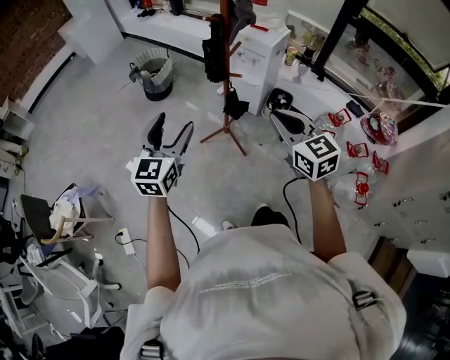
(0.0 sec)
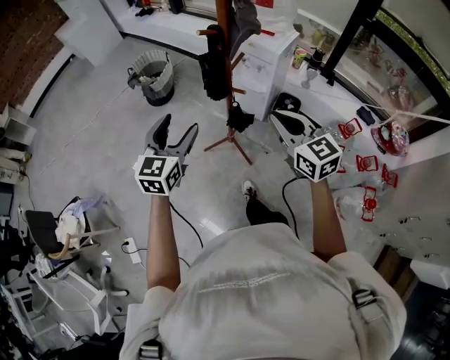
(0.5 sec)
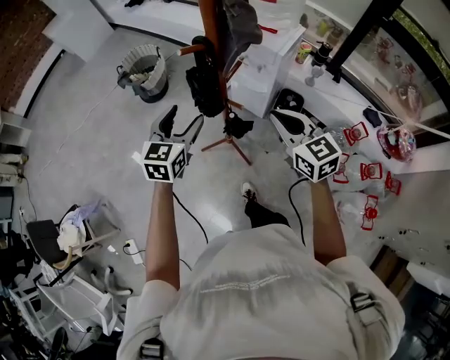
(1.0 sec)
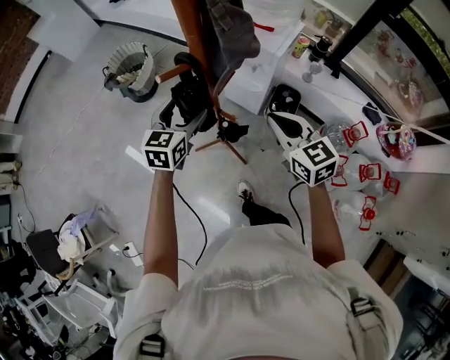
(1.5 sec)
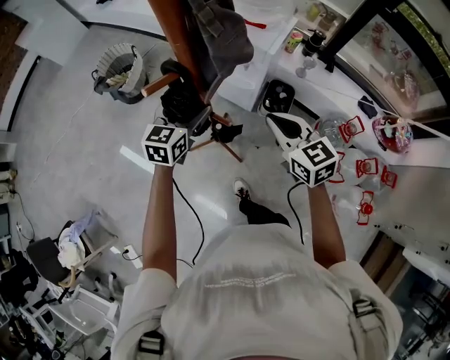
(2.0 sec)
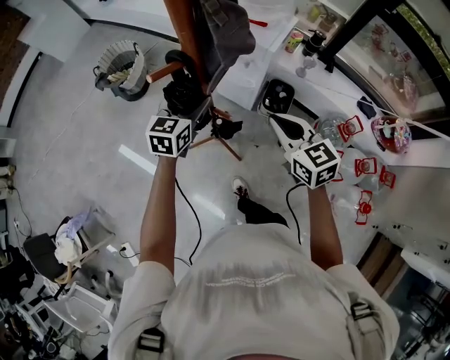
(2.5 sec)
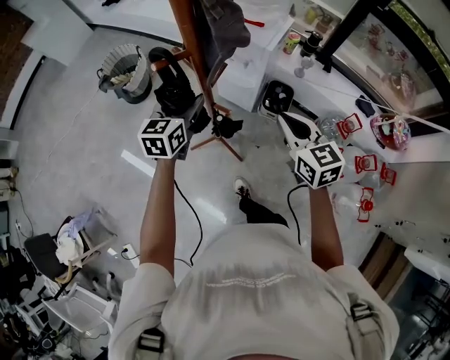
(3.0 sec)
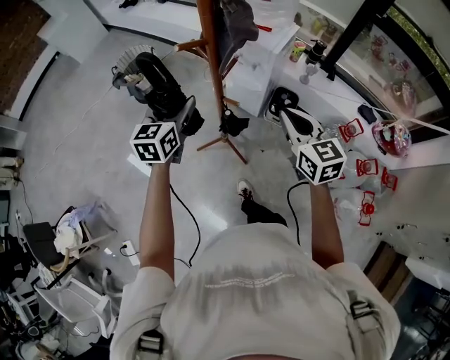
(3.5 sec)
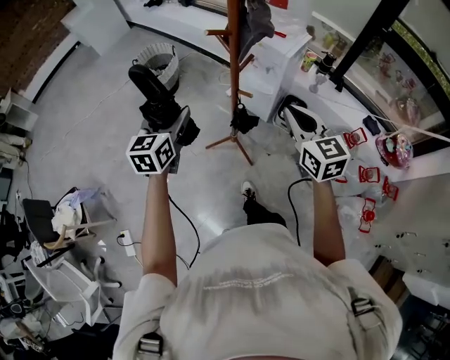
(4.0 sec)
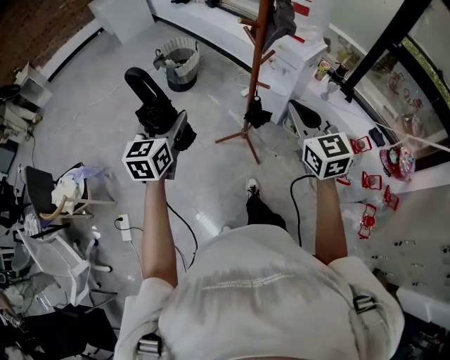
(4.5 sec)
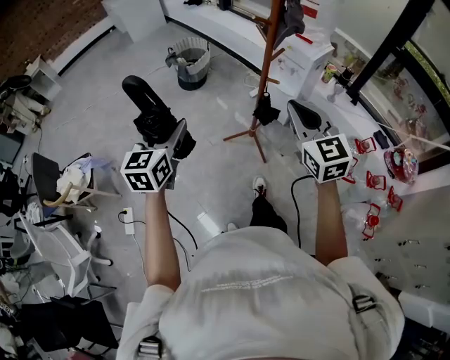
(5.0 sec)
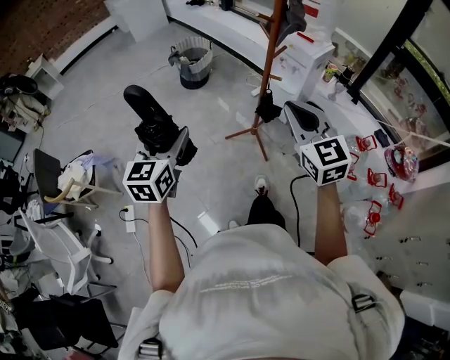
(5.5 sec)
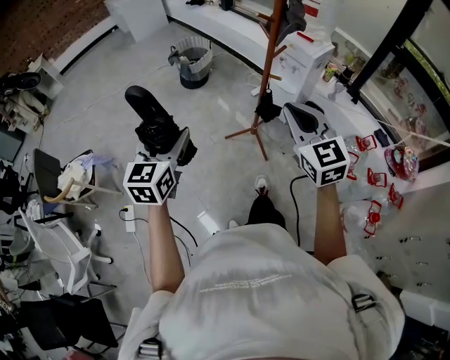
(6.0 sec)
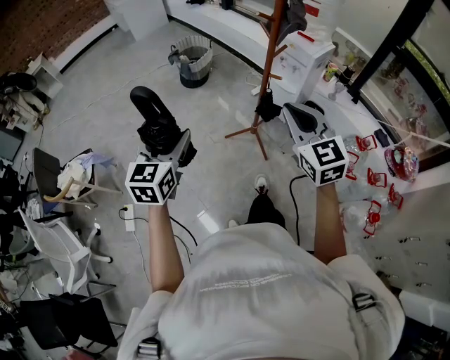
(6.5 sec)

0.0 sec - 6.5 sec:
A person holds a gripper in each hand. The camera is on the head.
0.0 sec - 2.0 sec: Both grippers travel together forward and downward, roughly 35 cm. The left gripper rotates about 20 degrees.
2.0 sec - 4.5 sec: The left gripper is displaced backward, to the left and upward by roughly 40 cm, and turns by some 30 degrees, while the right gripper heads backward and upward, covering roughly 25 cm.
4.5 sec - 6.5 sec: The right gripper moves backward and to the left, approximately 10 cm; the left gripper is displaced backward by about 15 cm.

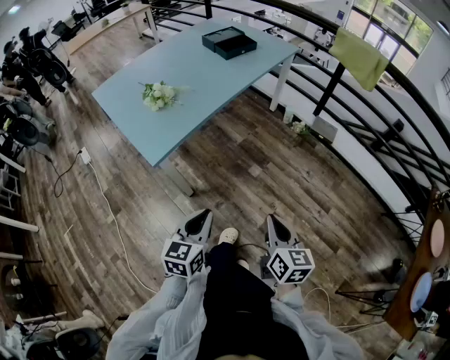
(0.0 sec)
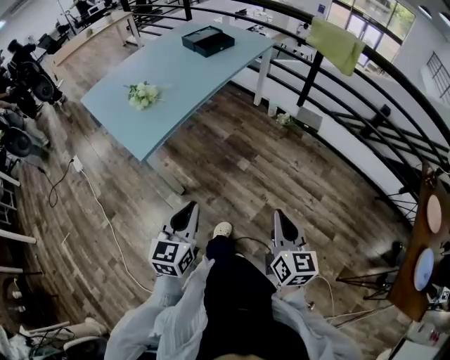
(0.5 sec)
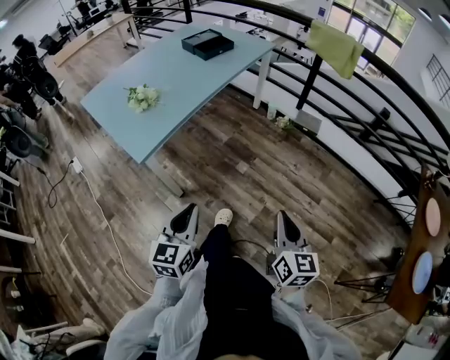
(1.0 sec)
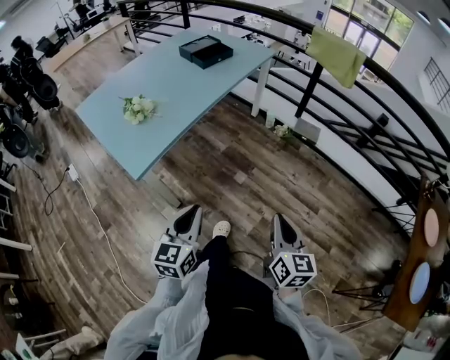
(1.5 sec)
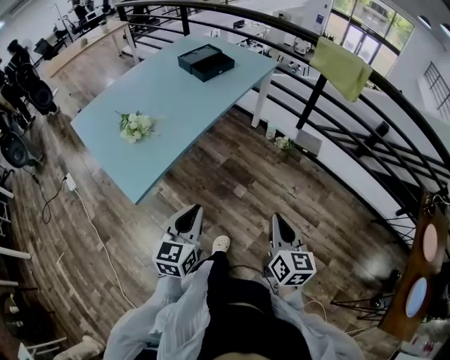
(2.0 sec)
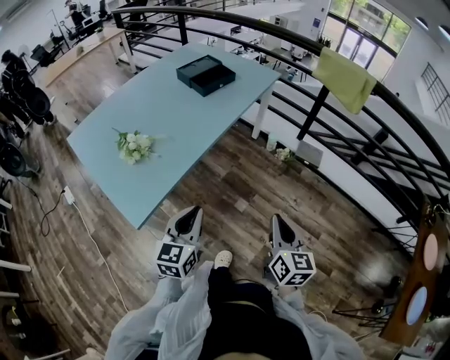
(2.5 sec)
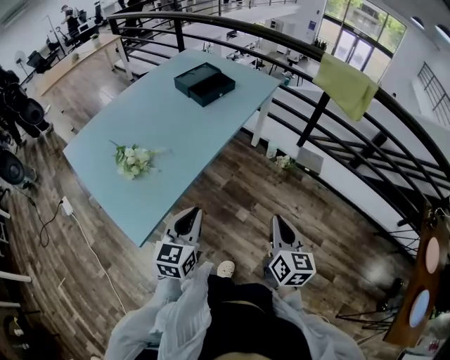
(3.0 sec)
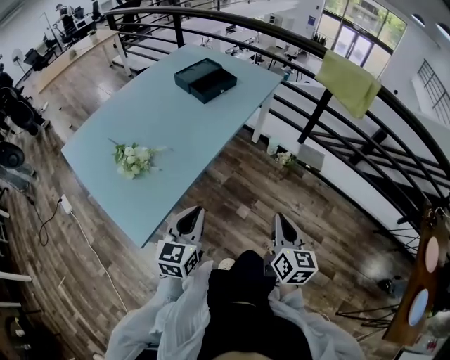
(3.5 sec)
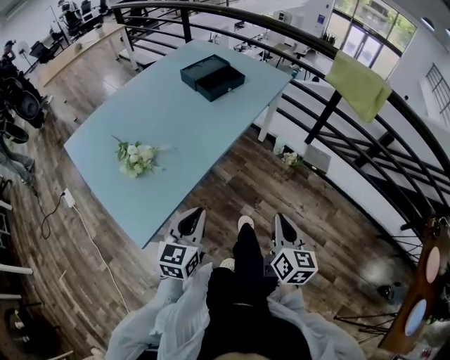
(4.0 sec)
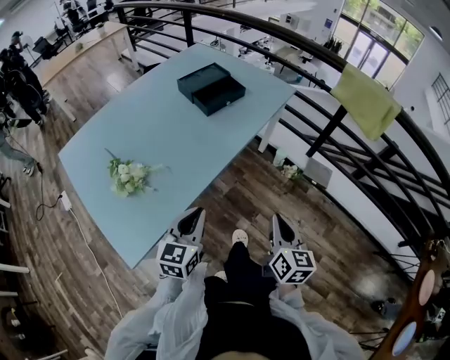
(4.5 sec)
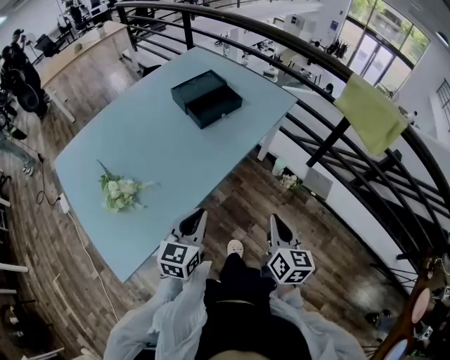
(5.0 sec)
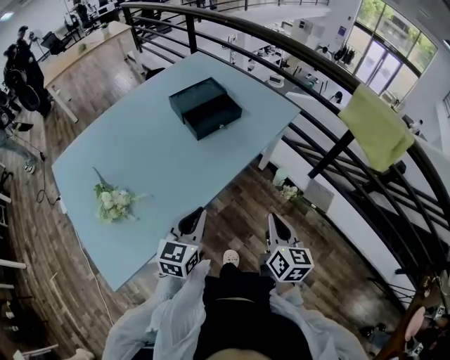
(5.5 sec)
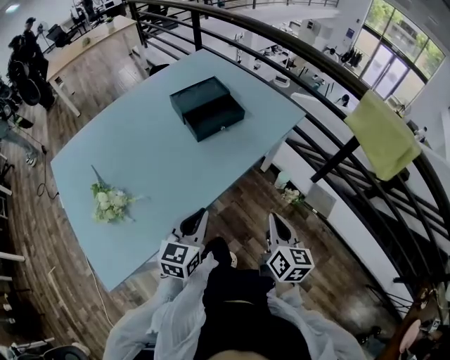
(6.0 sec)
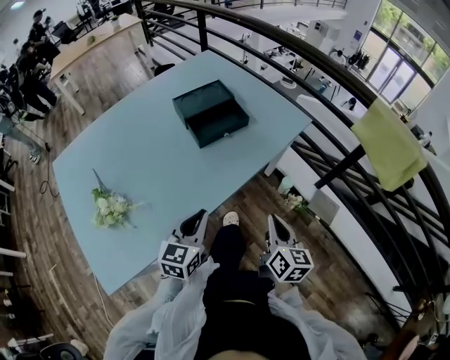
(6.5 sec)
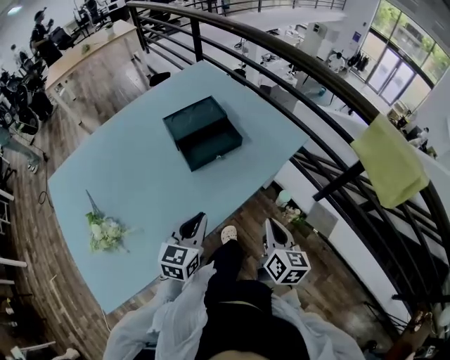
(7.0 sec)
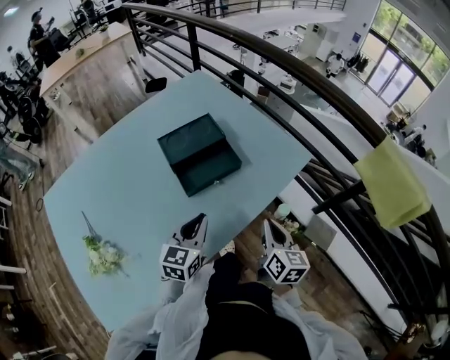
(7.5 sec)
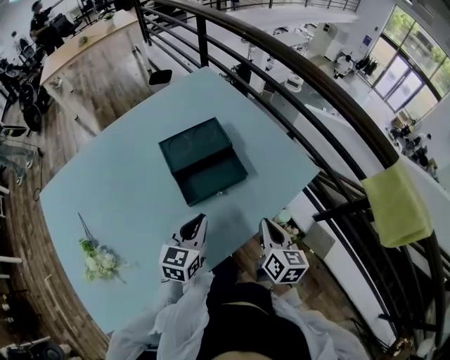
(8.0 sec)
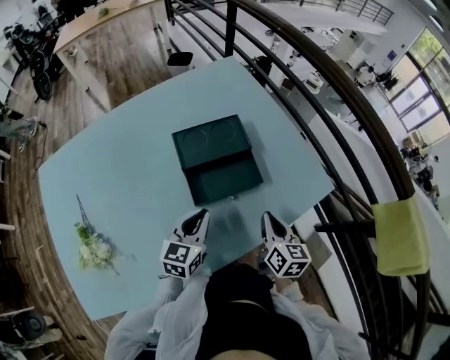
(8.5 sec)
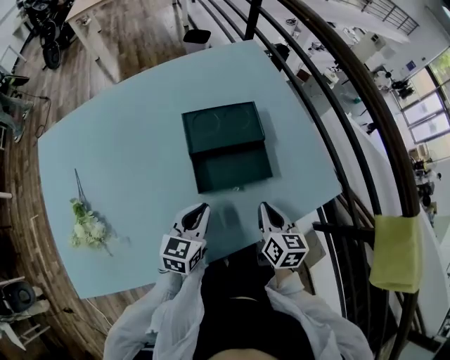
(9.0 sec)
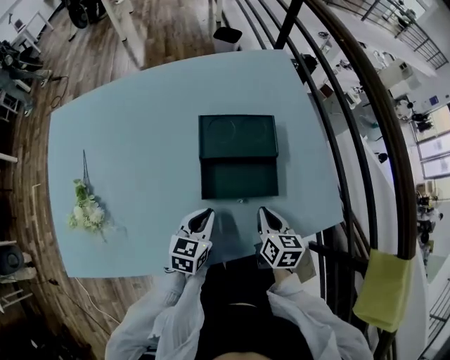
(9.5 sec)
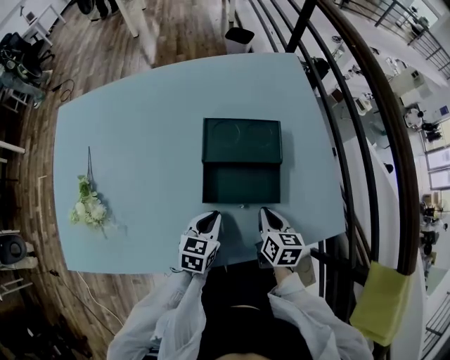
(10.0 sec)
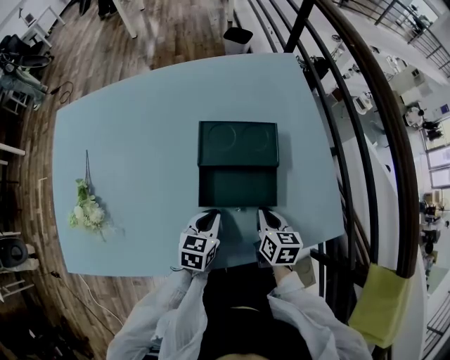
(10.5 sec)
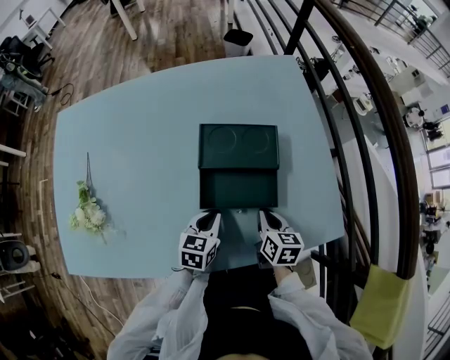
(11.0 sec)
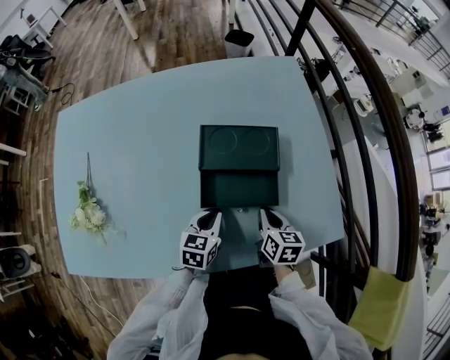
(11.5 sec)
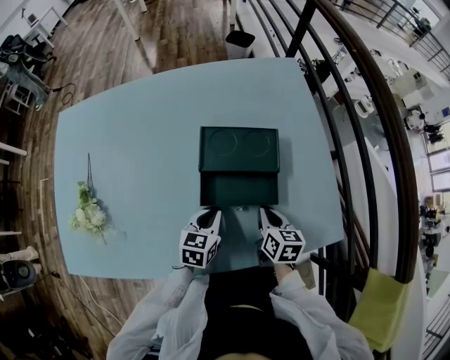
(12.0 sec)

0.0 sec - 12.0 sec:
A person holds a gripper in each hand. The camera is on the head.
0.0 sec - 2.0 sec: The right gripper moves forward and to the right, roughly 10 cm, while the left gripper heads forward, covering about 10 cm.
2.0 sec - 4.0 sec: The left gripper moves forward and to the left, some 15 cm; the right gripper moves forward, some 15 cm.
4.0 sec - 6.0 sec: The grippers both shift forward by some 25 cm.
6.0 sec - 8.0 sec: Both grippers travel together forward, some 25 cm.
8.0 sec - 10.0 sec: The right gripper moves approximately 15 cm, and swivels approximately 40 degrees. The left gripper goes approximately 10 cm downward, and turns by roughly 30 degrees.
10.0 sec - 12.0 sec: There are only small adjustments of the grippers.

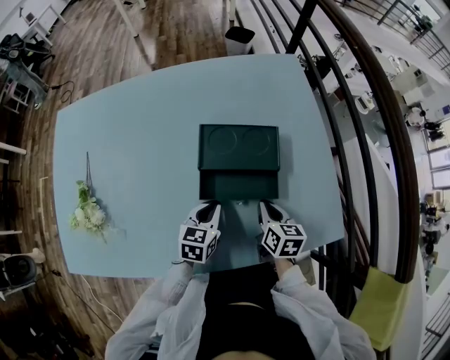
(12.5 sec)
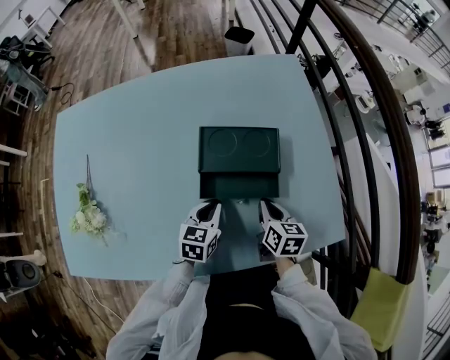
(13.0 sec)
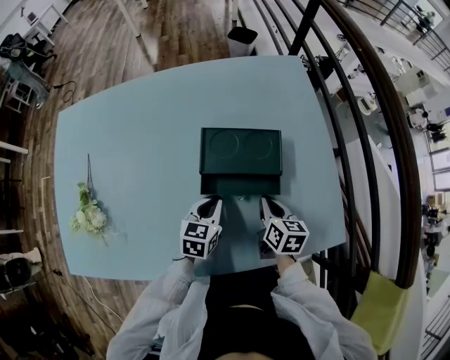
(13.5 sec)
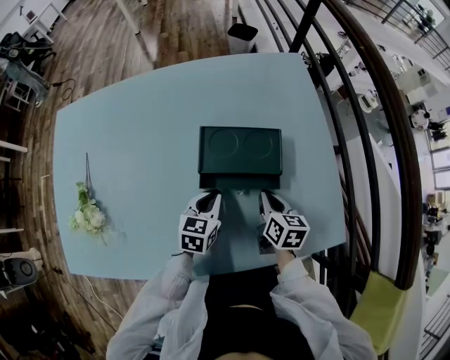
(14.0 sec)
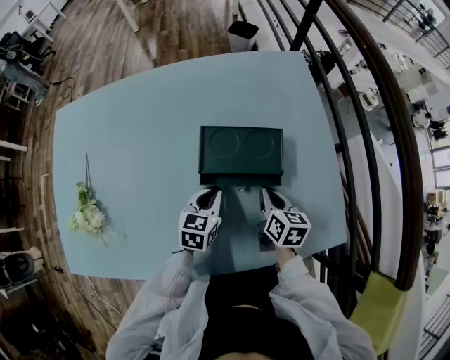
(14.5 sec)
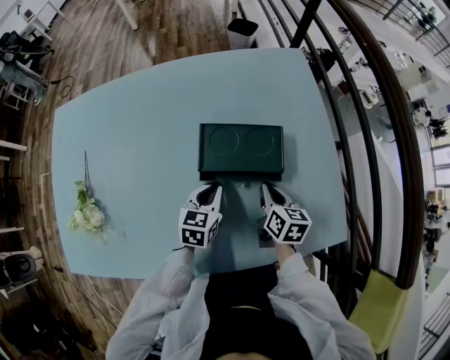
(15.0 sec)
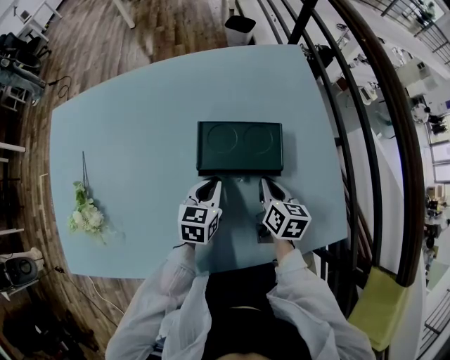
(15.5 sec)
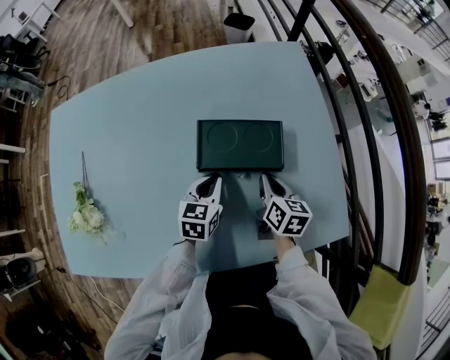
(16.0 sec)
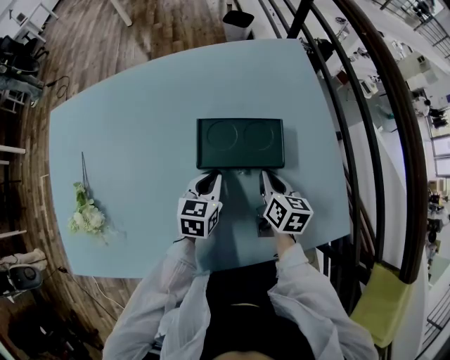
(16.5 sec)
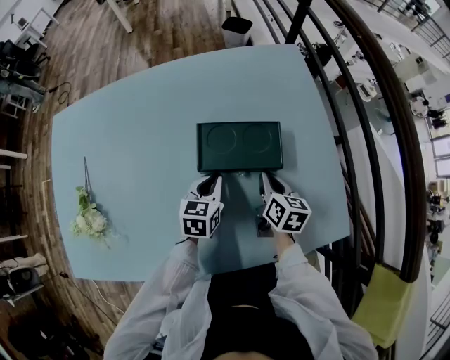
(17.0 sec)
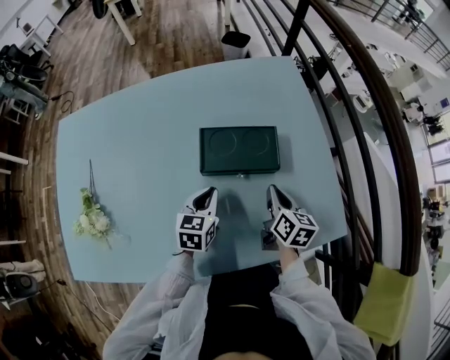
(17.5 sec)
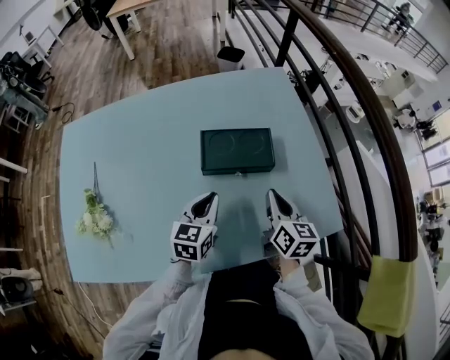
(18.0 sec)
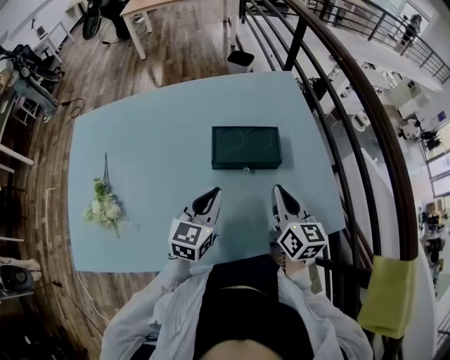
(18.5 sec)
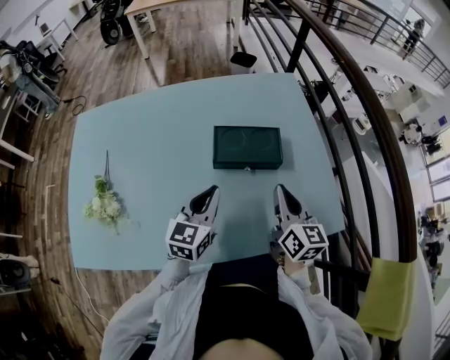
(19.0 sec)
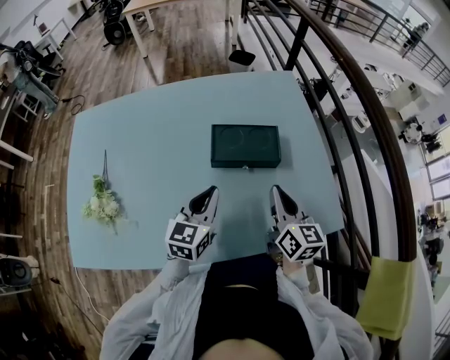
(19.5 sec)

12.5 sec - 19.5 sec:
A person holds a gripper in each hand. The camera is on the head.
12.5 sec - 14.5 sec: The left gripper goes about 5 cm forward.
14.5 sec - 17.5 sec: The grippers stay close to where they were, moving slightly.
17.5 sec - 19.5 sec: Both grippers travel together upward and backward, approximately 15 cm. The right gripper changes its angle by some 20 degrees.

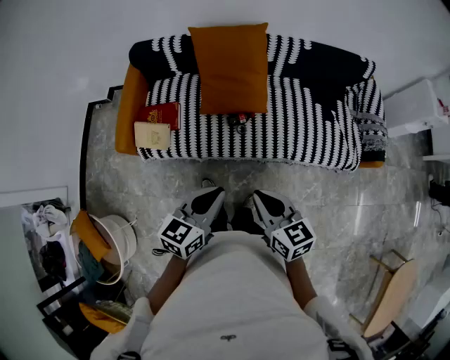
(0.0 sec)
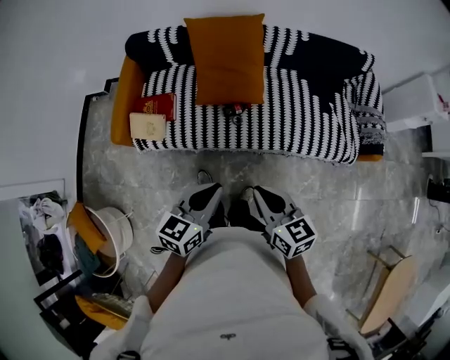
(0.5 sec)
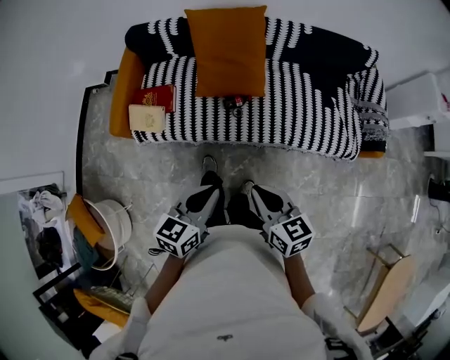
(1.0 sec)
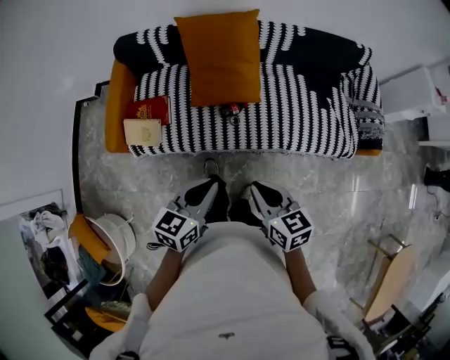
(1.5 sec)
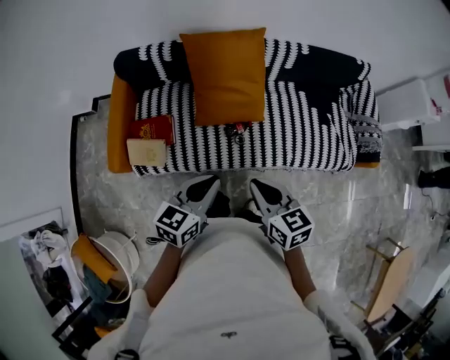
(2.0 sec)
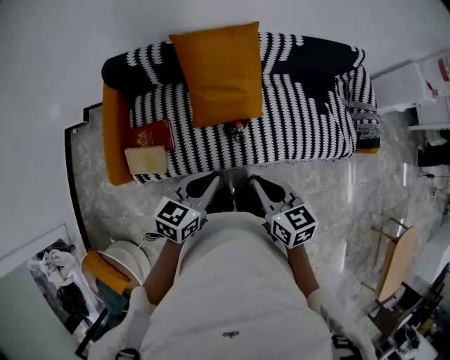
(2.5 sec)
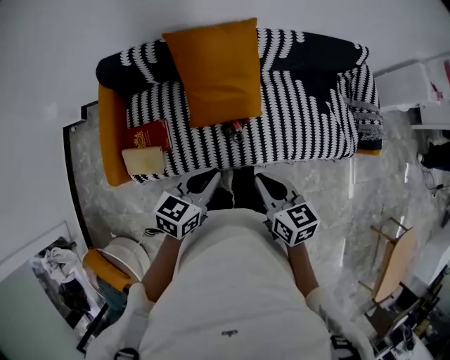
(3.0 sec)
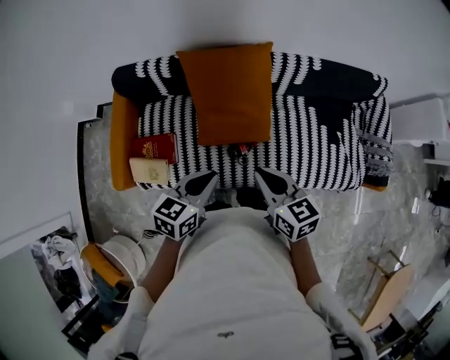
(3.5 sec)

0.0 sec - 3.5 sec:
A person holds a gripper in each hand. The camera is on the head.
0.0 sec - 2.0 sec: Both grippers move forward and to the left, roughly 15 cm.
2.0 sec - 3.5 sec: Both grippers travel together forward, approximately 15 cm.
